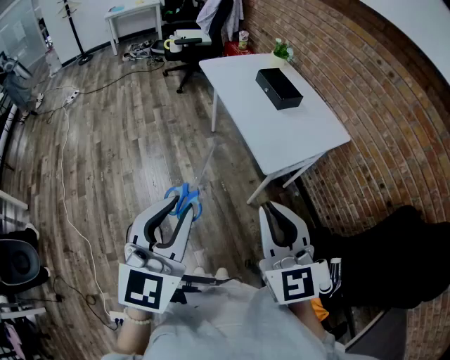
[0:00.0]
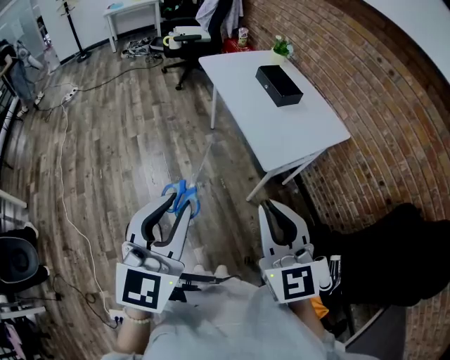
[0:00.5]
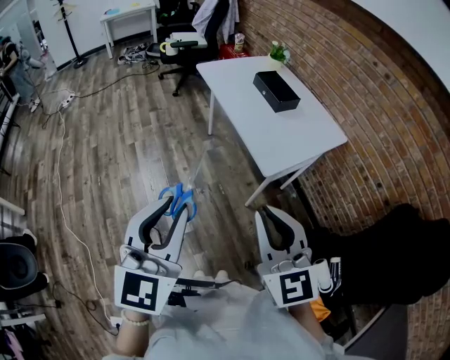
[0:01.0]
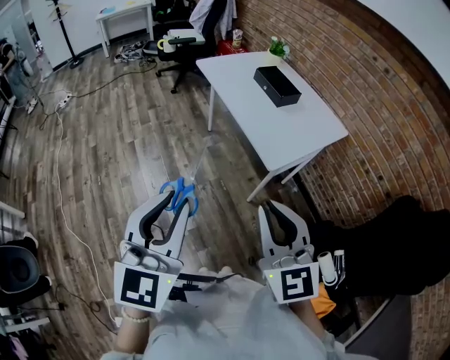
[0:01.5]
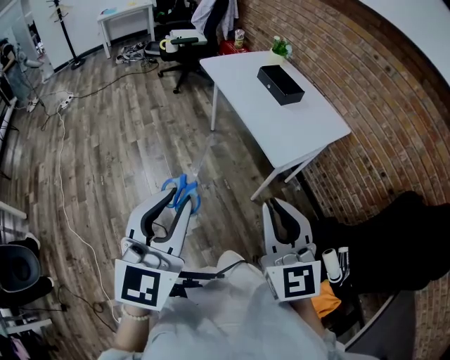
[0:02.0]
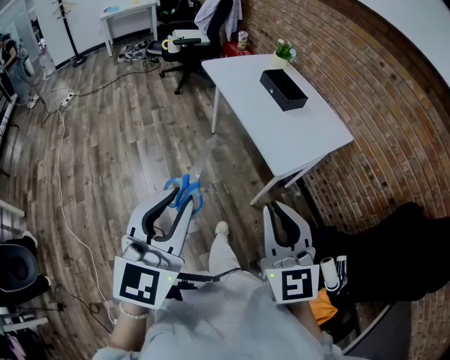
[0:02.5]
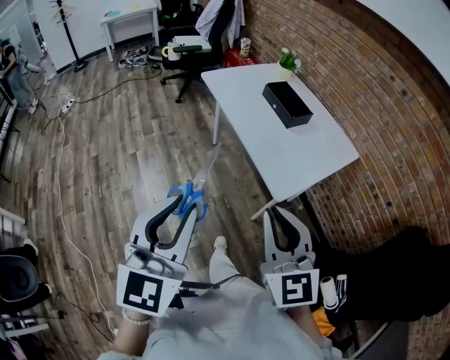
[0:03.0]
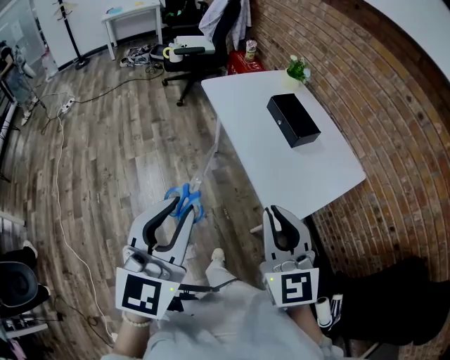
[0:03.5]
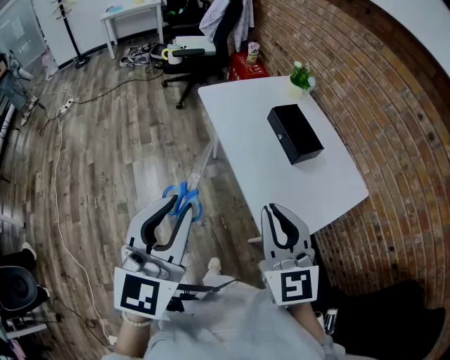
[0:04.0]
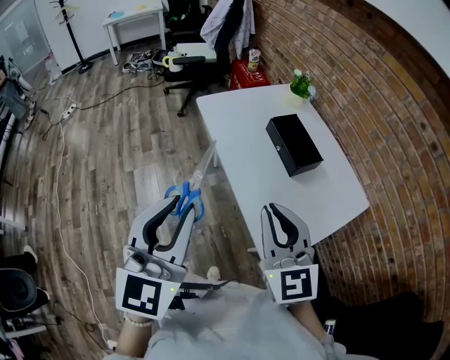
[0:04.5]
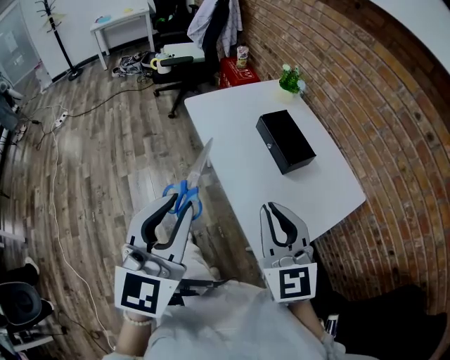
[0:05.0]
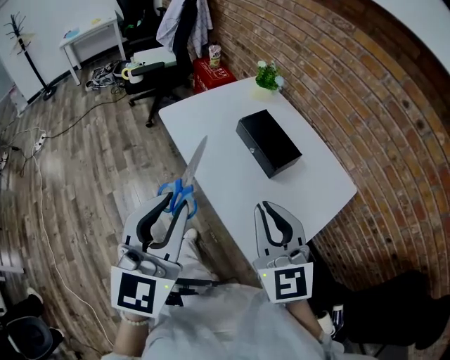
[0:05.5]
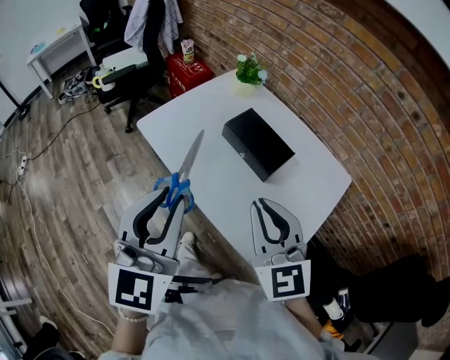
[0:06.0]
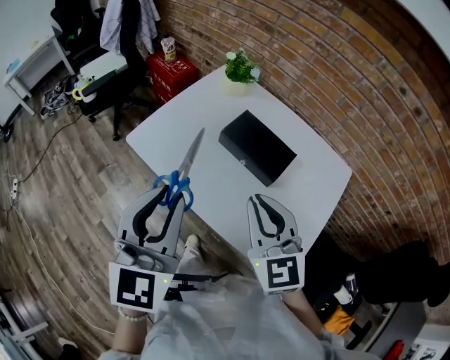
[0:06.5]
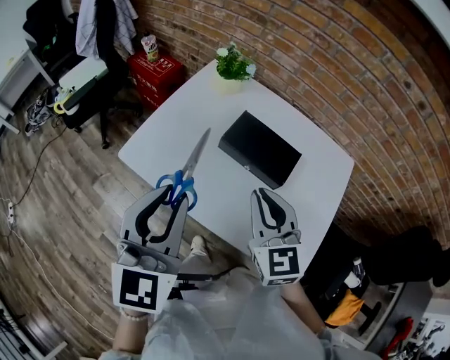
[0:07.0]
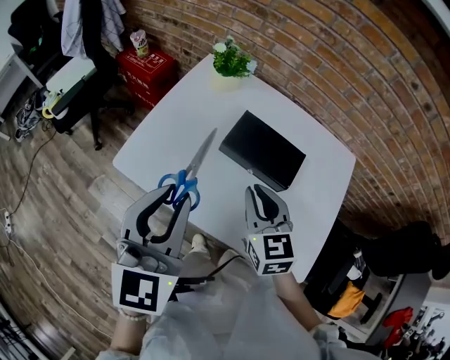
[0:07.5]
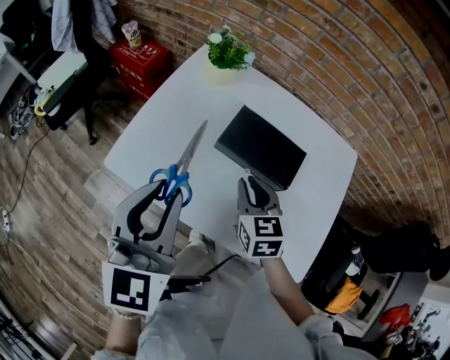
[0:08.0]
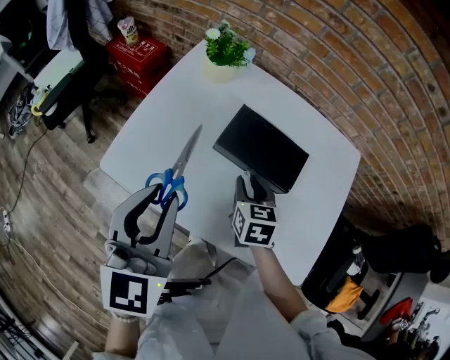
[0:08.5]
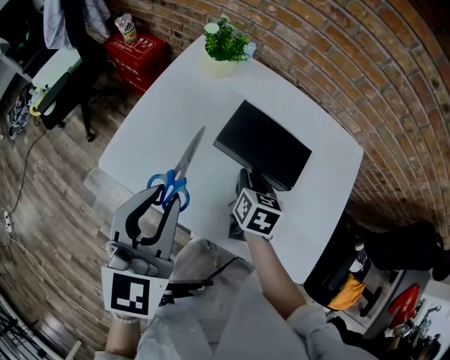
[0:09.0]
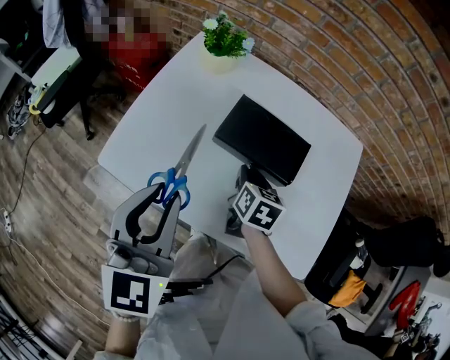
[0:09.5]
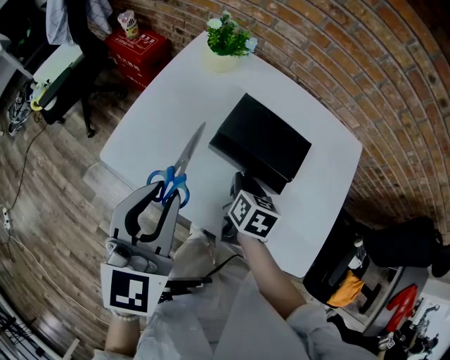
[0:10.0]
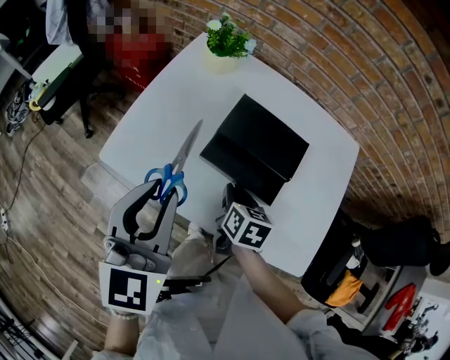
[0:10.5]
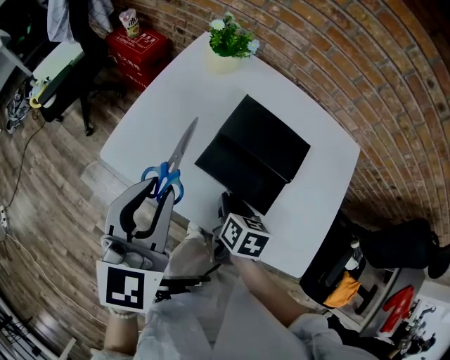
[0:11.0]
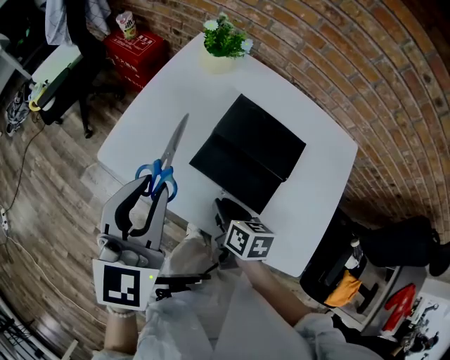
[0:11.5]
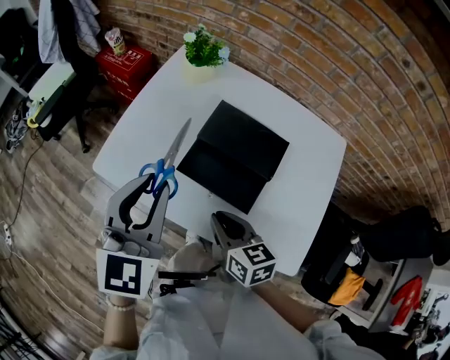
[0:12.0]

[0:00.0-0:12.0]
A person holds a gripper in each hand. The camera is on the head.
0:00.0 to 0:02.0: Both grippers travel together to the left, approximately 5 cm.
0:02.0 to 0:04.0: The two grippers go approximately 35 cm forward.
0:04.0 to 0:06.0: Both grippers move forward, about 20 cm.
0:06.0 to 0:08.0: The right gripper is displaced forward and downward by approximately 30 cm, and changes its angle by about 40 degrees. Meanwhile the left gripper is displaced forward by roughly 25 cm, and changes its angle by roughly 20 degrees.
0:08.0 to 0:10.0: The right gripper heads downward, covering some 10 cm, and turns by approximately 30 degrees.
0:10.0 to 0:12.0: The right gripper heads backward and upward, covering some 15 cm, and turns by approximately 30 degrees.

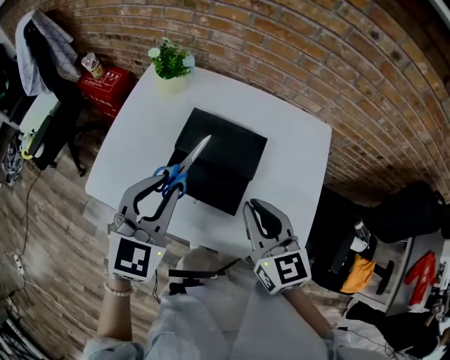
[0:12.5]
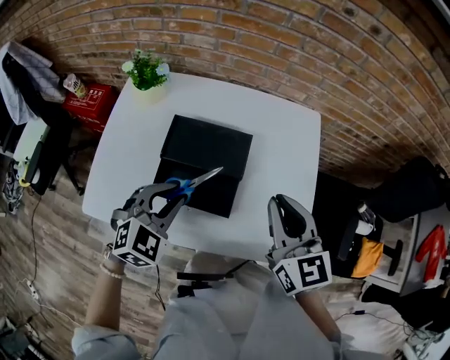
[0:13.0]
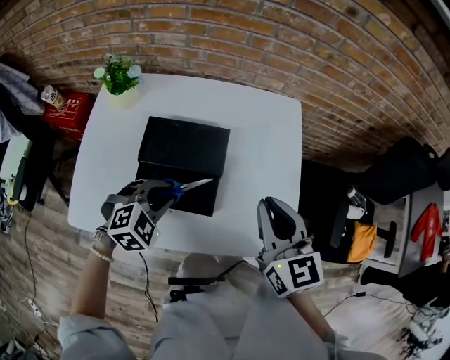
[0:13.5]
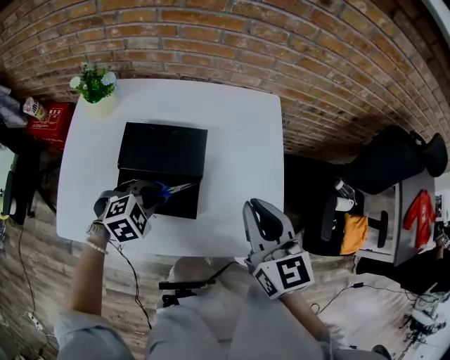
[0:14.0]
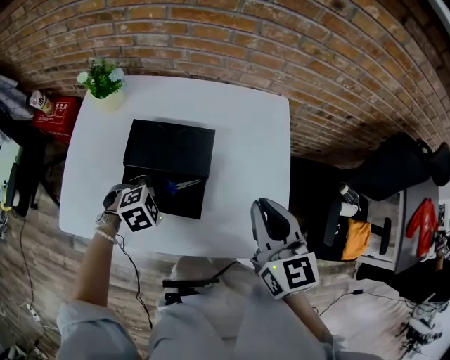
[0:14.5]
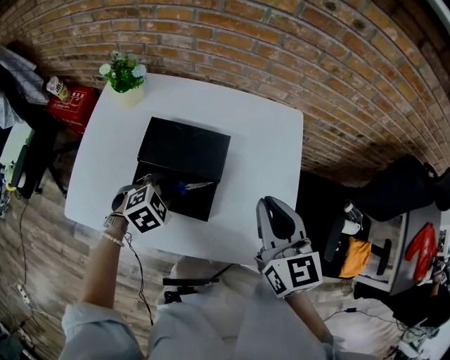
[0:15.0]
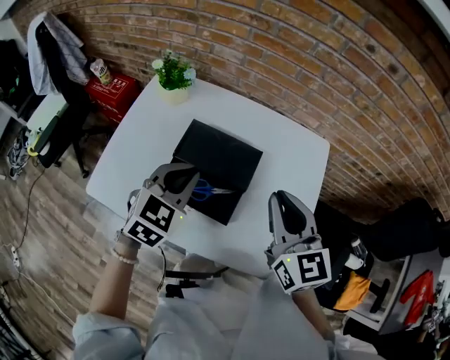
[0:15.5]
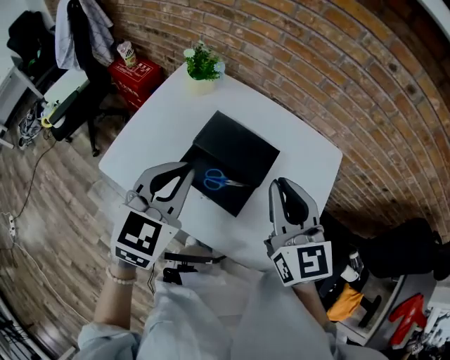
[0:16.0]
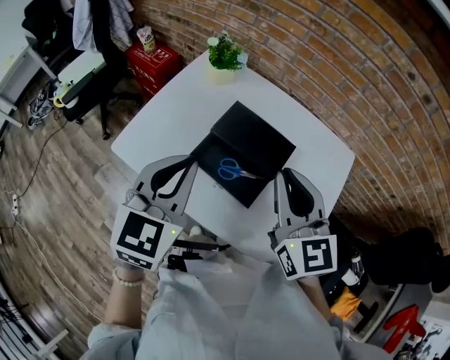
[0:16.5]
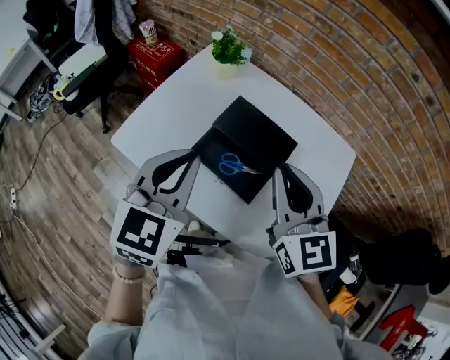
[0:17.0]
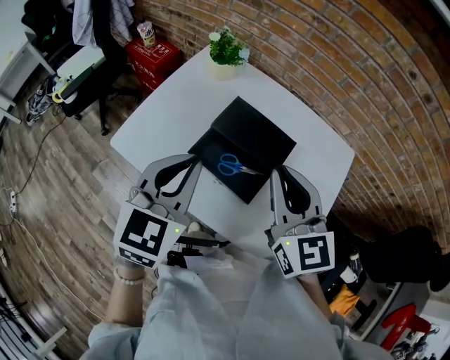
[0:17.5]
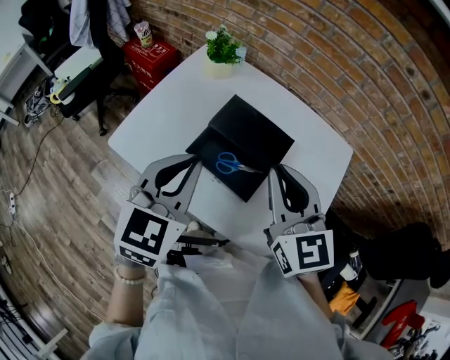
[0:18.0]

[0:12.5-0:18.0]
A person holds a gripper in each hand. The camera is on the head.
0:12.5 to 0:14.5: The left gripper heads downward, covering roughly 25 cm, and tips its fingers downward by about 50 degrees. Meanwhile the right gripper shifts by some 15 cm.
0:14.5 to 0:16.0: The right gripper ends up some 15 cm from where it was, and rotates some 30 degrees, while the left gripper travels upward by approximately 25 cm, and angles its fingers upward, by some 40 degrees.
0:16.0 to 0:18.0: The right gripper shifts some 5 cm to the left.

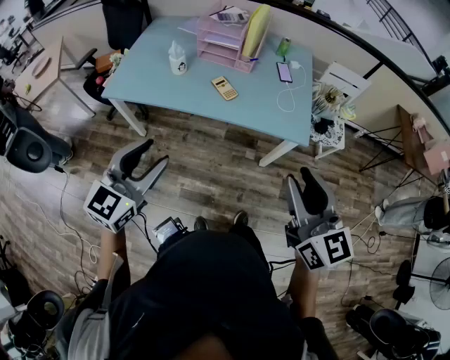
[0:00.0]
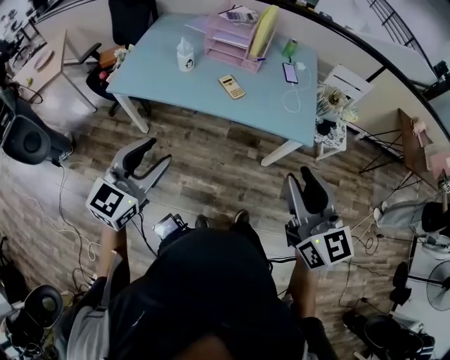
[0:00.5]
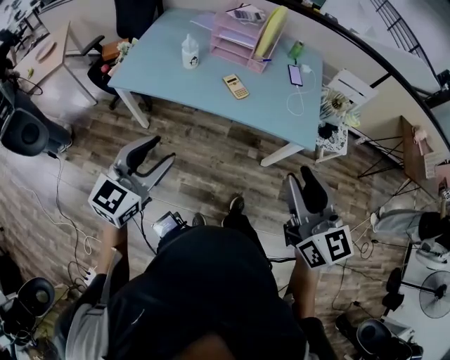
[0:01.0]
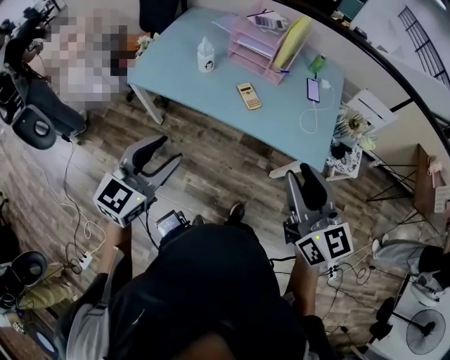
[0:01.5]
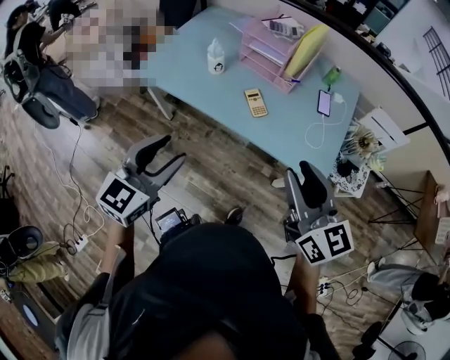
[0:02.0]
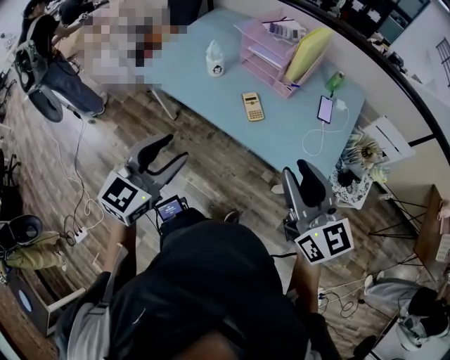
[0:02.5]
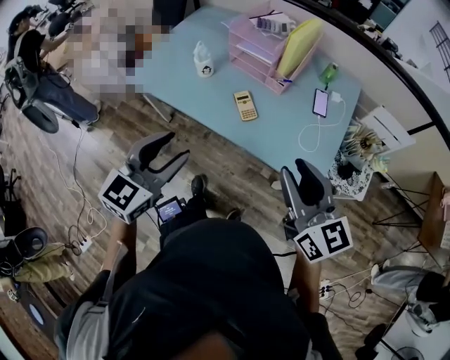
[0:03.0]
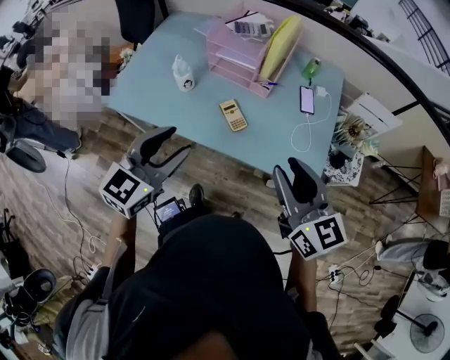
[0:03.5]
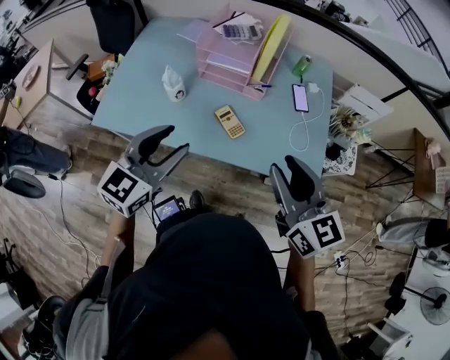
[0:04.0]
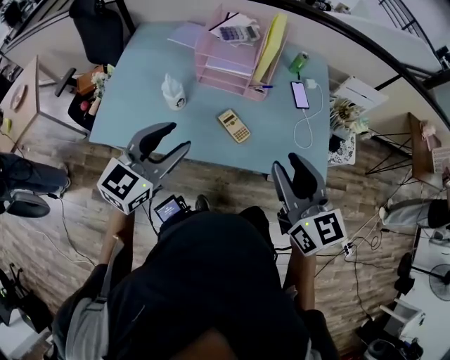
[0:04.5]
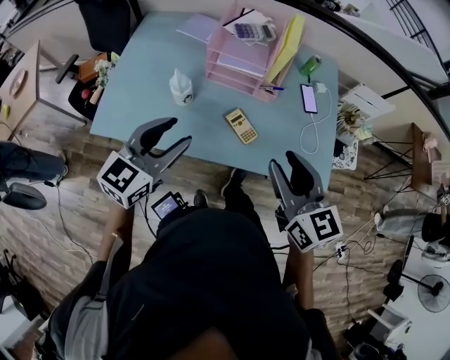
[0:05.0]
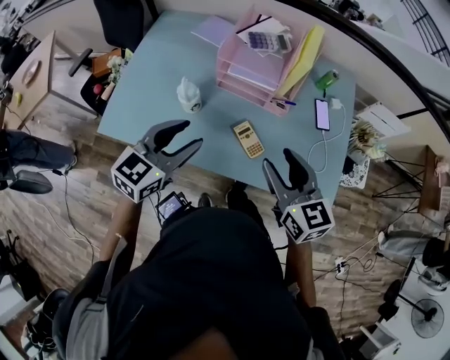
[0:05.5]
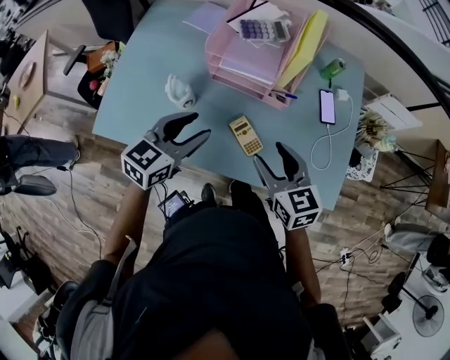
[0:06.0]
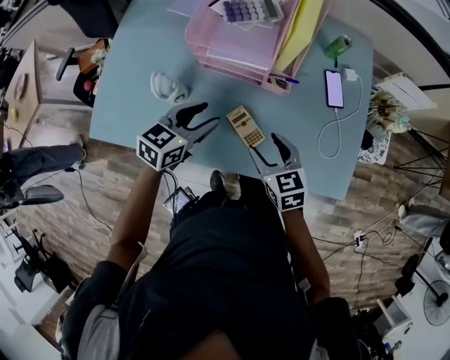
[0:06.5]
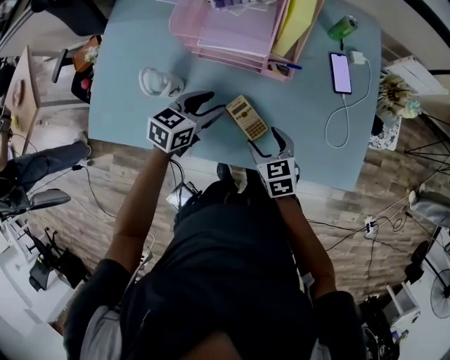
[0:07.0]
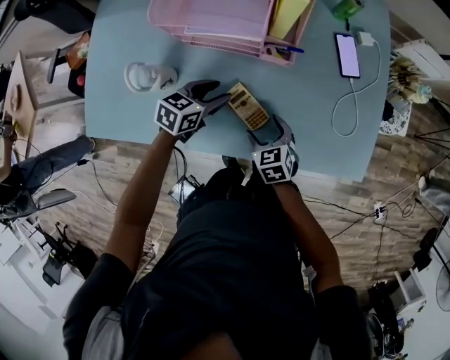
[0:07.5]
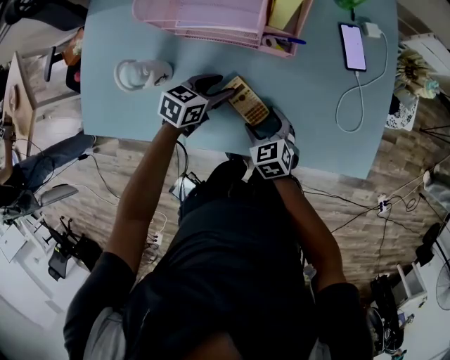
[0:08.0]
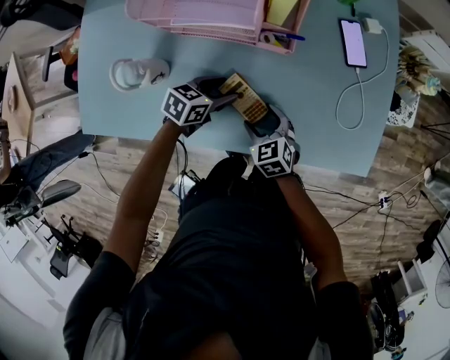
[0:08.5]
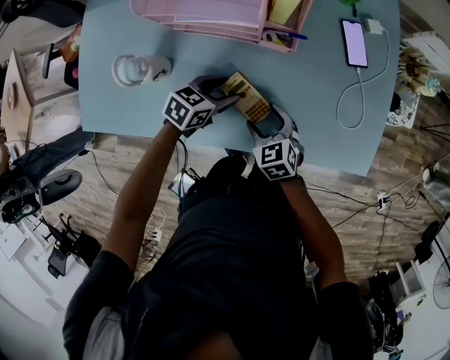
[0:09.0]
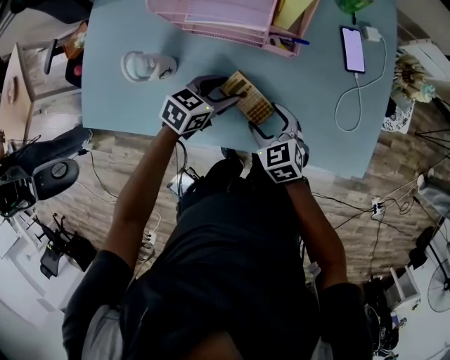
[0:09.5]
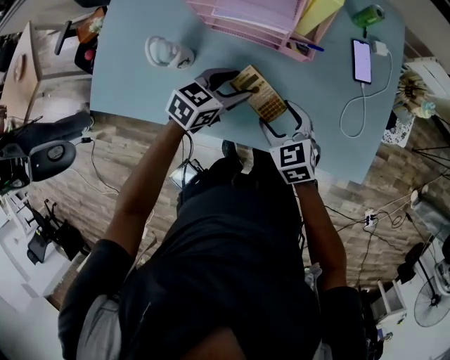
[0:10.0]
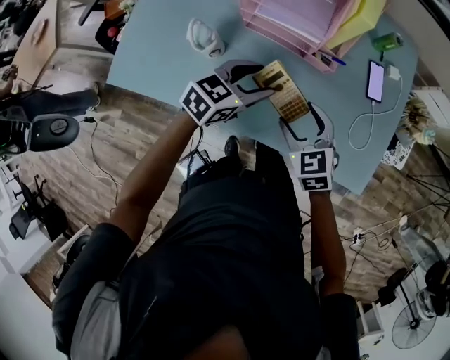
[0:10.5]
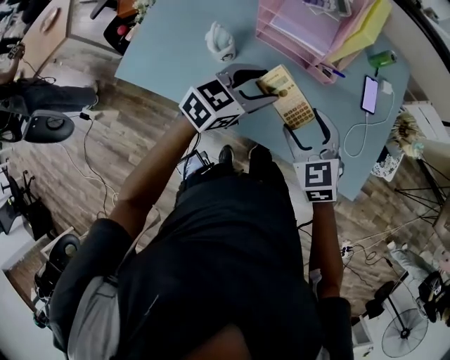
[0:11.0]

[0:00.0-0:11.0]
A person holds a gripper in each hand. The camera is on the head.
0:00.0 to 0:02.0: The left gripper is displaced forward by approximately 5 cm, while the right gripper heads forward, covering about 15 cm.
0:02.0 to 0:03.5: The two grippers go about 15 cm forward.
0:03.5 to 0:05.5: Both grippers travel together forward, to the left and downward, about 20 cm.
0:05.5 to 0:07.5: The left gripper heads downward and forward, covering roughly 35 cm, and turns by roughly 30 degrees, while the right gripper is displaced downward by approximately 35 cm, tips its fingers downward by about 30 degrees, and opens up.
0:07.5 to 0:09.0: The left gripper changes place by roughly 5 cm.
0:09.0 to 0:11.0: Both grippers travel together upward, approximately 20 cm. The right gripper turns by about 20 degrees. Meanwhile the left gripper changes its angle by about 30 degrees.
